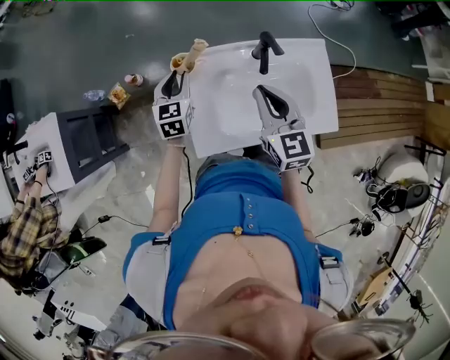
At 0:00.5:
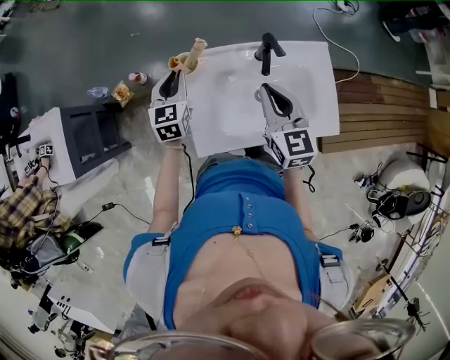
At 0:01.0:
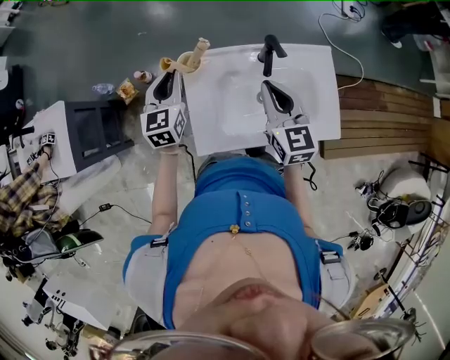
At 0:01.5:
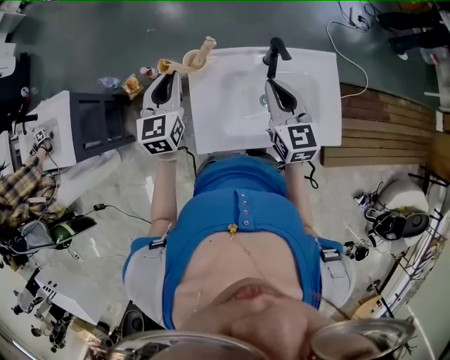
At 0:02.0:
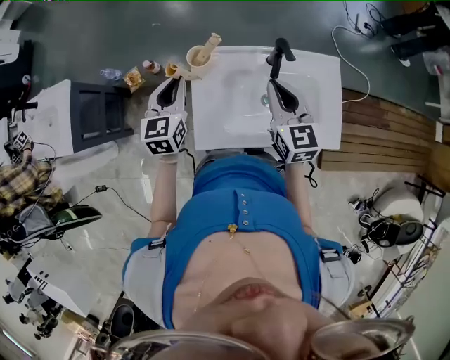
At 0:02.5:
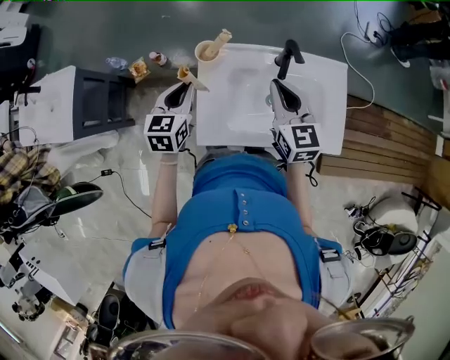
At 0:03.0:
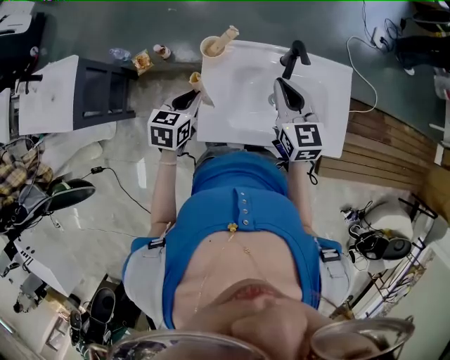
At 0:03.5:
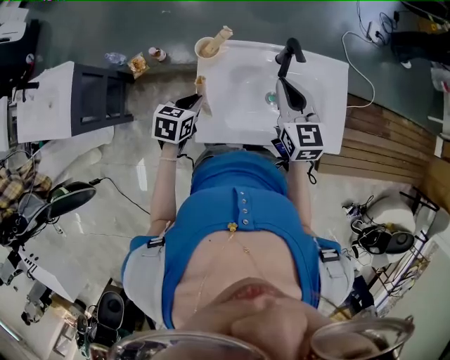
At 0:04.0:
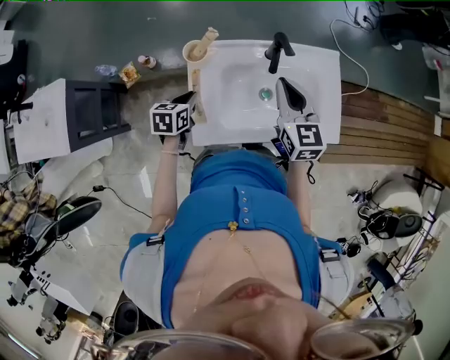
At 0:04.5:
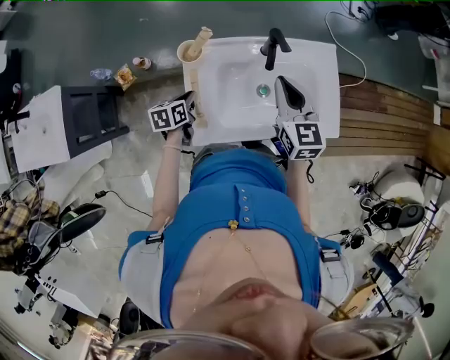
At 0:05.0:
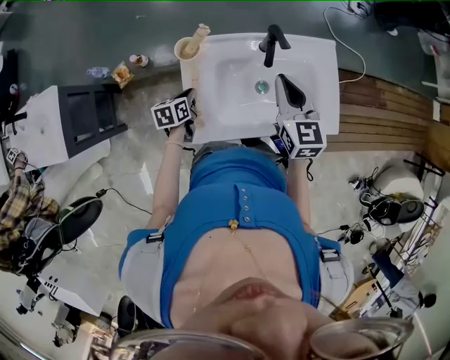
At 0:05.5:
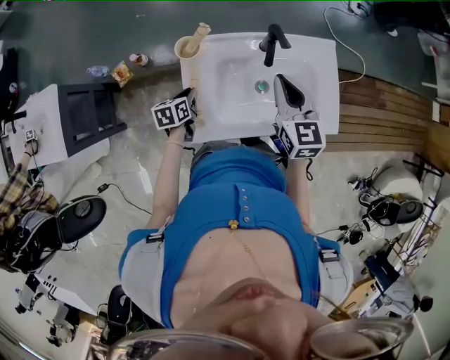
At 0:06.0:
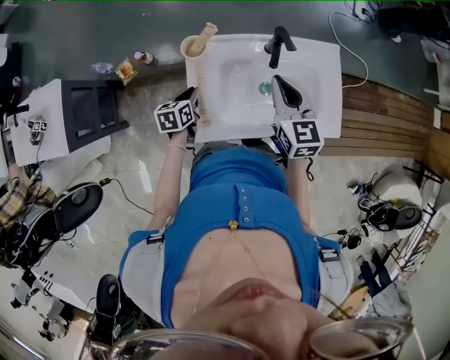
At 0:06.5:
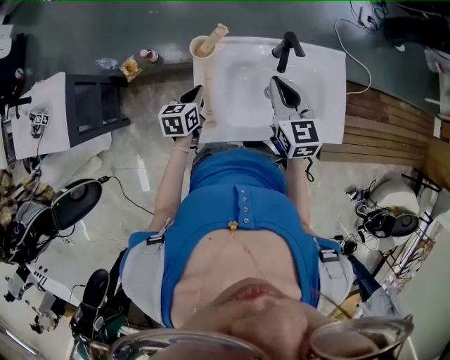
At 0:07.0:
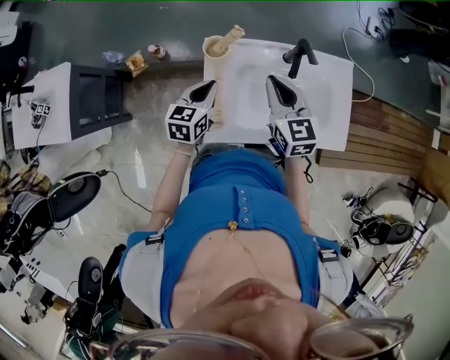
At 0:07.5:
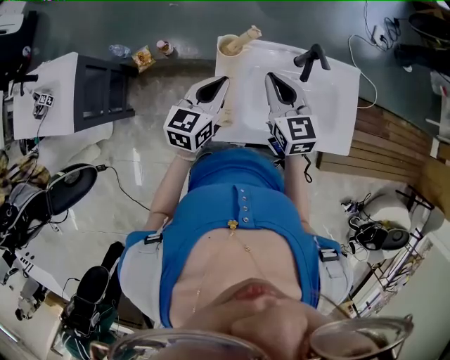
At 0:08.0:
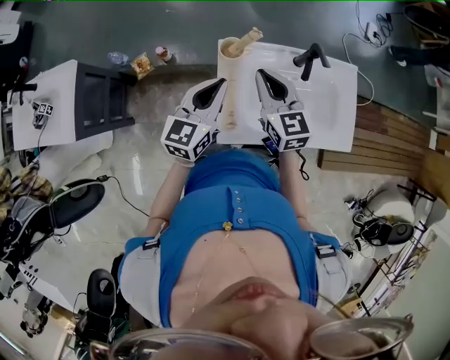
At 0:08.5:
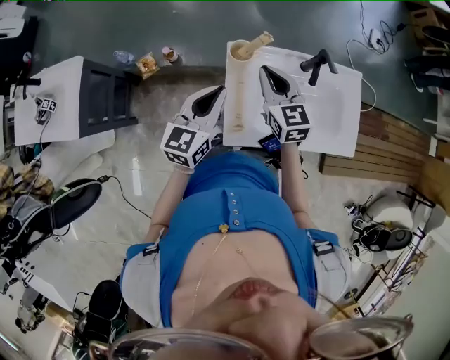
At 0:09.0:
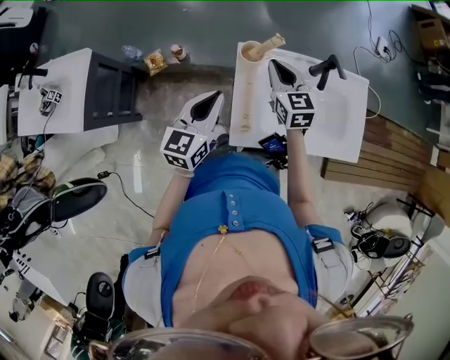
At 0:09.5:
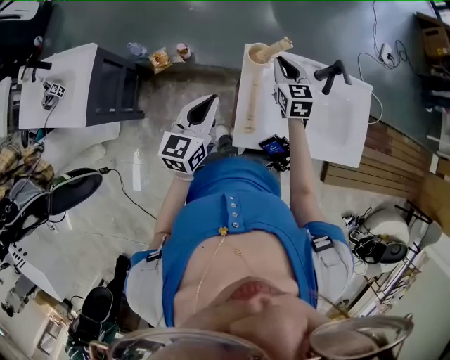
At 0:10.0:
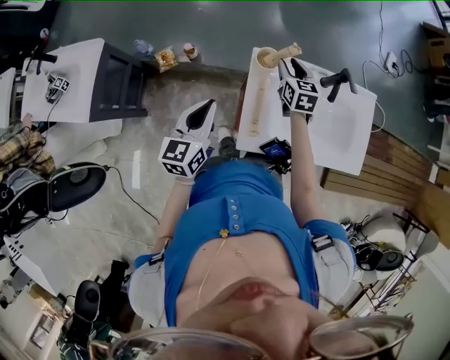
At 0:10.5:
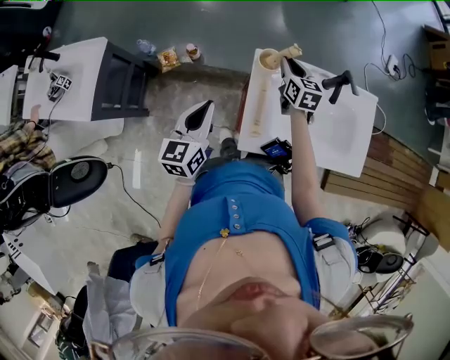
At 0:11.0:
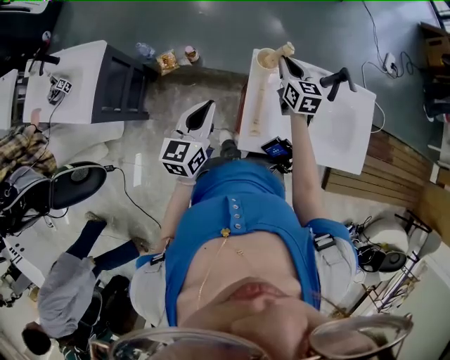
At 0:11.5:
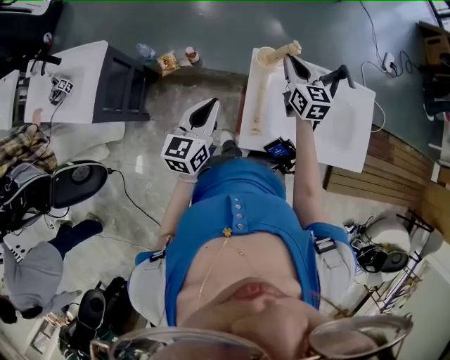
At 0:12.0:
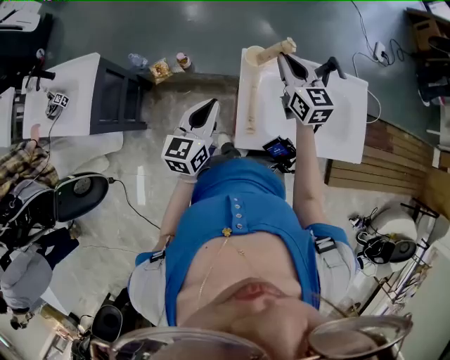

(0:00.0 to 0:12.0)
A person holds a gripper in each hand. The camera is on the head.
0:00.0 - 0:02.0: The left gripper travels upward and backward by about 10 cm.
0:02.0 - 0:04.0: The left gripper is displaced downward by roughly 15 cm, and swivels approximately 30 degrees.
0:06.0 - 0:08.0: The right gripper is displaced to the left by about 15 cm. Meanwhile the left gripper shifts about 20 cm upward, and tips its fingers upward by roughly 30 degrees.
0:08.0 - 0:10.0: The left gripper travels to the left and backward by roughly 15 cm, while the right gripper travels downward and forward by about 15 cm, and opens up.
0:10.0 - 0:12.0: The right gripper heads upward, covering about 15 cm, turns by approximately 20 degrees, and closes.

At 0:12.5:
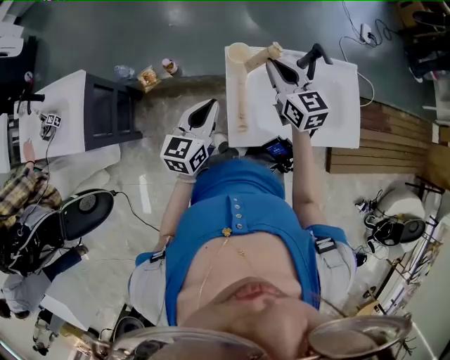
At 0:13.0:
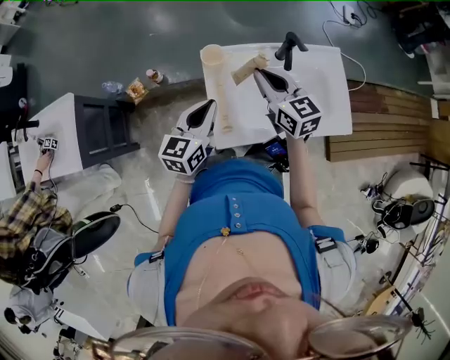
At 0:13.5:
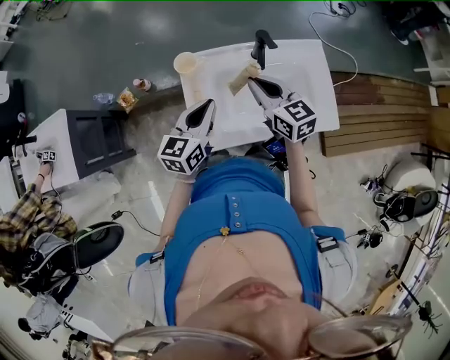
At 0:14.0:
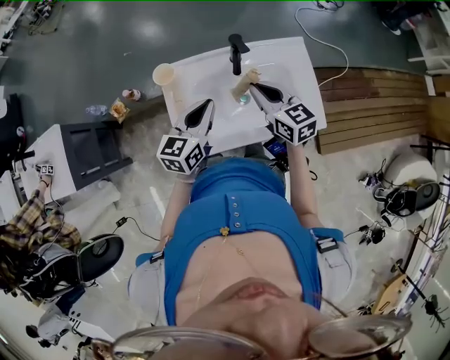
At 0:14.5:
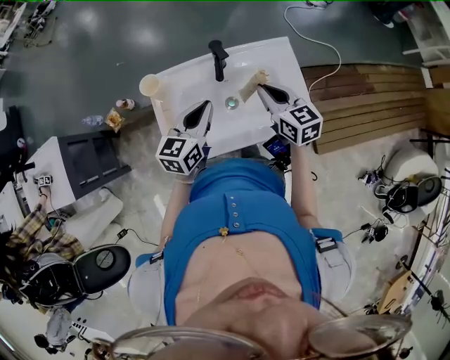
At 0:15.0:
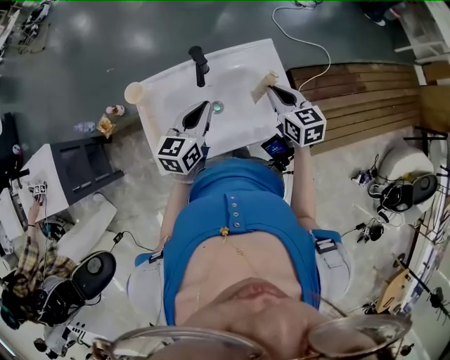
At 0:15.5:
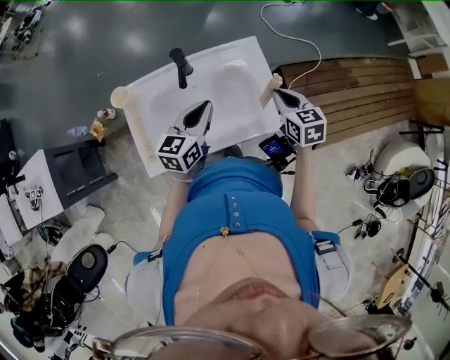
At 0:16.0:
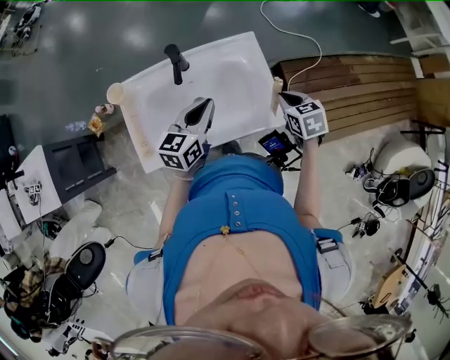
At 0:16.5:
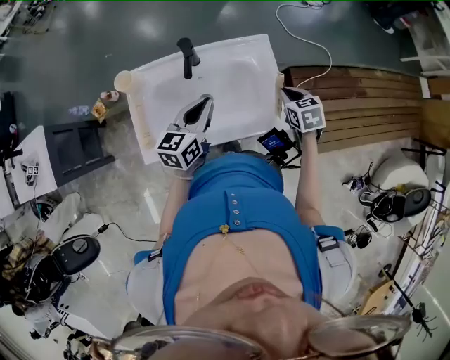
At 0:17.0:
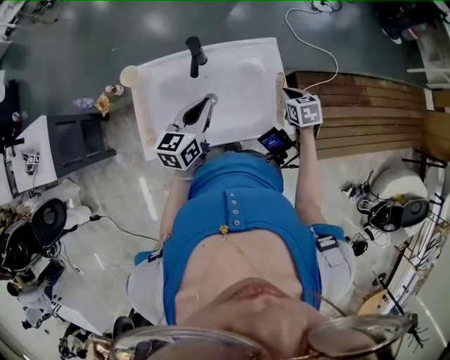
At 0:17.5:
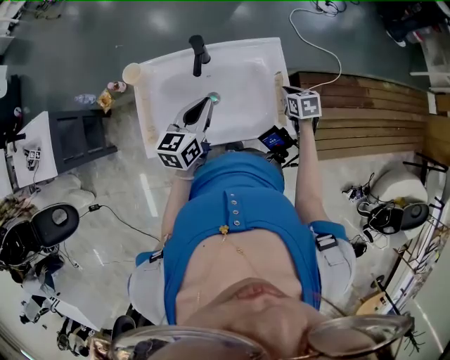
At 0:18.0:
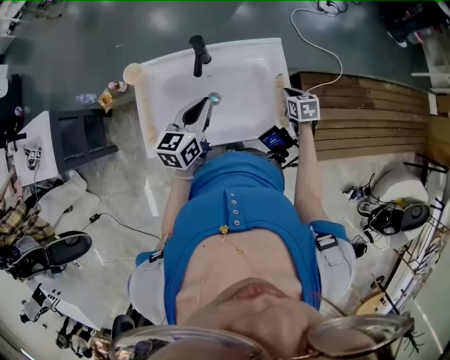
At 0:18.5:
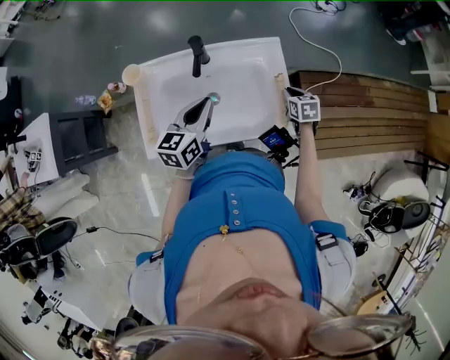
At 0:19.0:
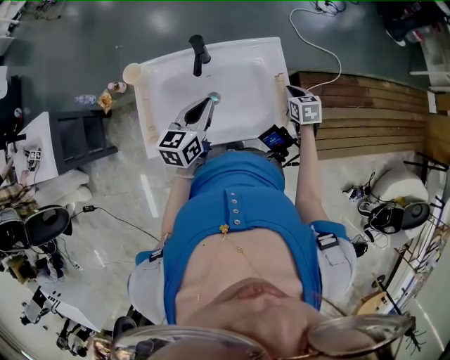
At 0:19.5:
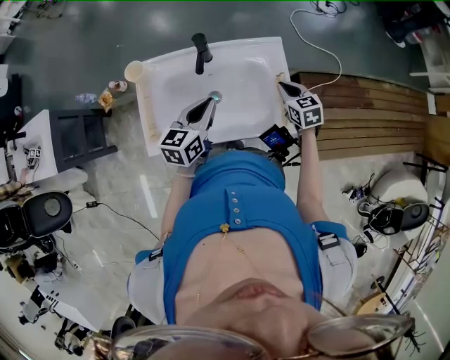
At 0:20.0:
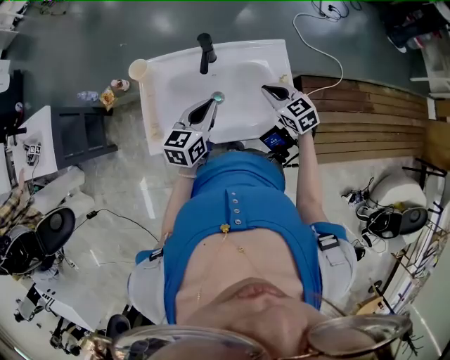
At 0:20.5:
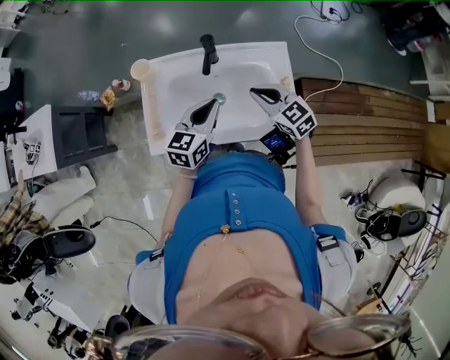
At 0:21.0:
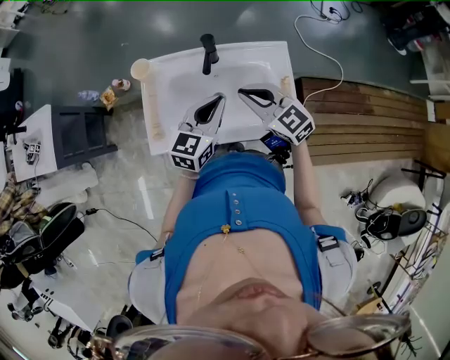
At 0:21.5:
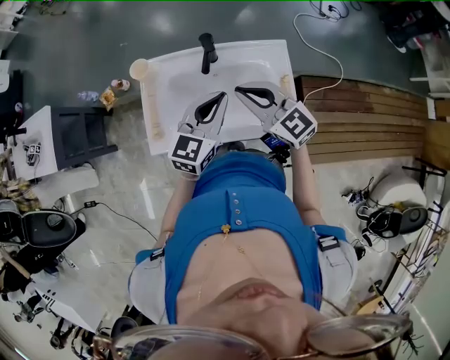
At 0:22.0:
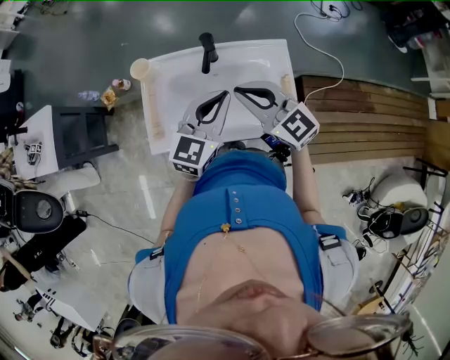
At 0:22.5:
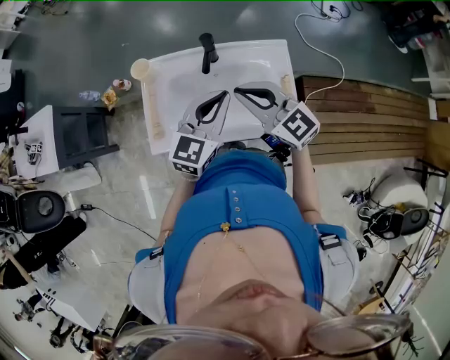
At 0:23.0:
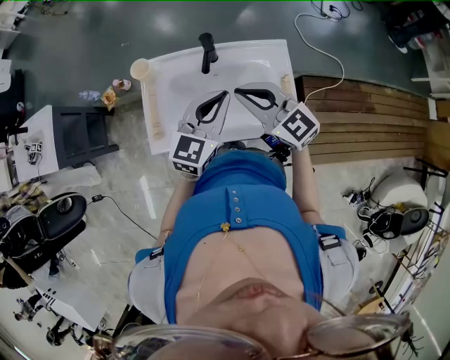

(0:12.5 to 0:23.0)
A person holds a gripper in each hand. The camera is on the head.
0:12.5 - 0:14.5: Both grippers move to the right, approximately 30 cm.
0:14.5 - 0:16.5: The left gripper travels to the right by about 10 cm. Meanwhile the right gripper goes some 20 cm to the right and downward, and turns by approximately 30 degrees.
0:16.5 - 0:19.0: The right gripper is displaced downward by some 5 cm.
0:19.0 - 0:21.0: The right gripper moves to the left and upward, some 30 cm, and points its fingers some 30 degrees further upward.
0:21.0 - 0:23.0: Both grippers travel together upward, roughly 5 cm.

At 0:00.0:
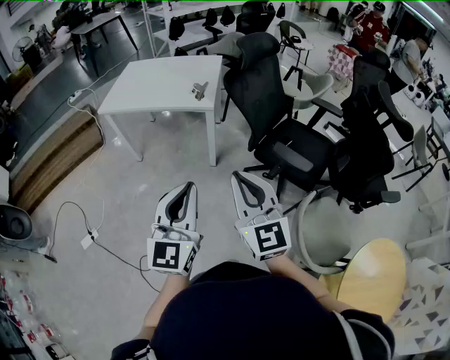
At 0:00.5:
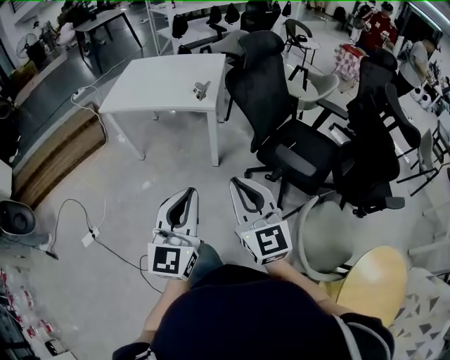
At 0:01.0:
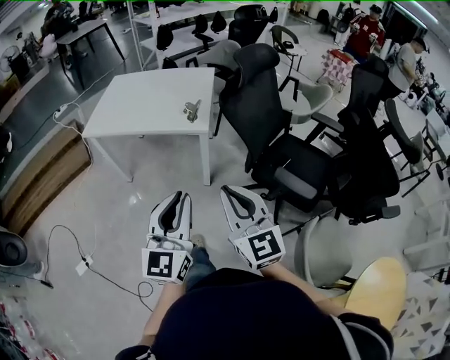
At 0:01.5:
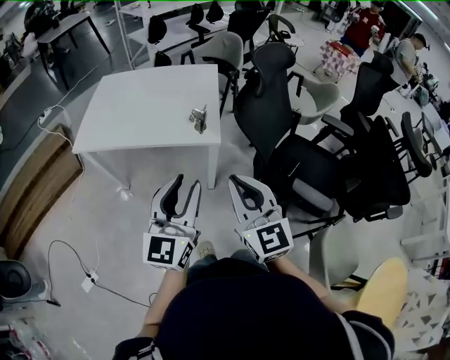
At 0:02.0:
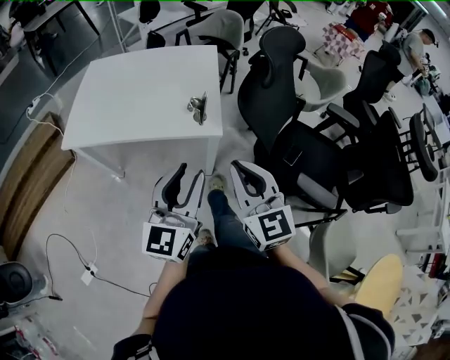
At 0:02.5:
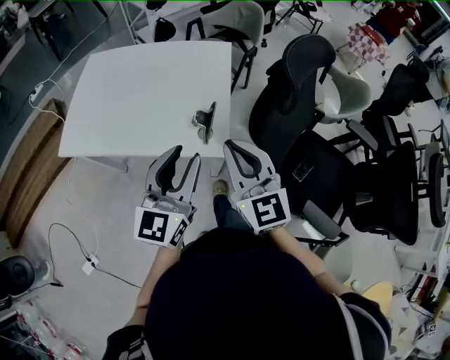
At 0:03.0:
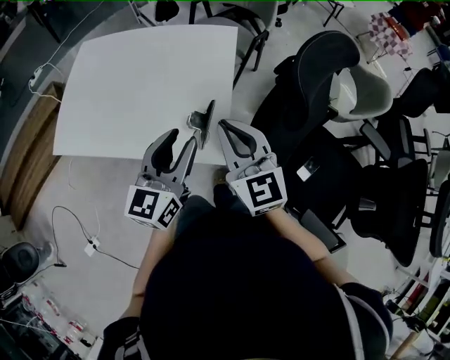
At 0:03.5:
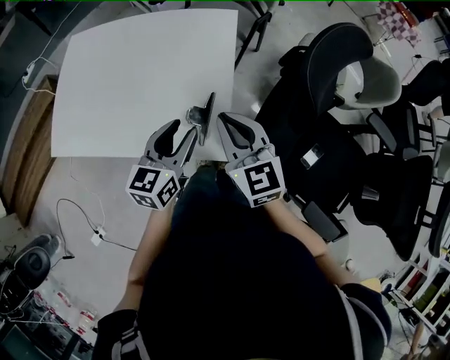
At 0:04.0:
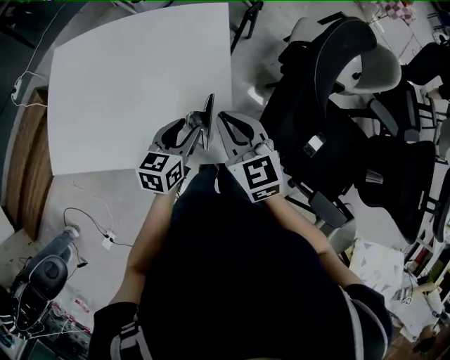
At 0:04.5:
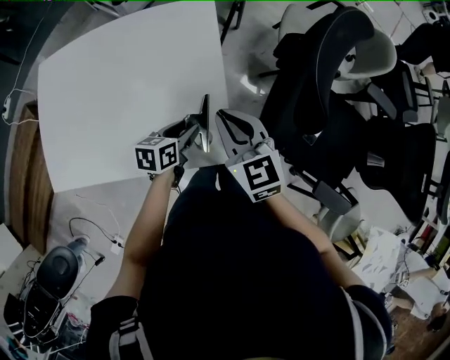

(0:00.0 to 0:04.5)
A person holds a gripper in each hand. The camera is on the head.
0:00.0 - 0:02.0: Both grippers are carried forward, some 40 cm. The left gripper opens.
0:02.0 - 0:04.5: The right gripper is displaced forward by some 40 cm, and turns by roughly 20 degrees. The left gripper heads forward and downward, covering roughly 50 cm, and points its fingers approximately 40 degrees further downward.
